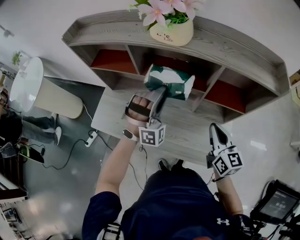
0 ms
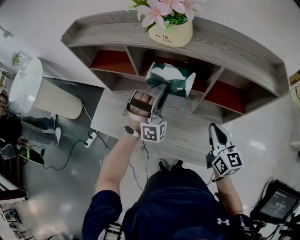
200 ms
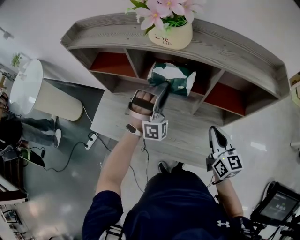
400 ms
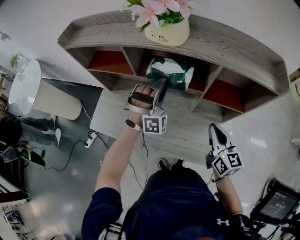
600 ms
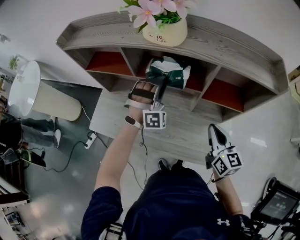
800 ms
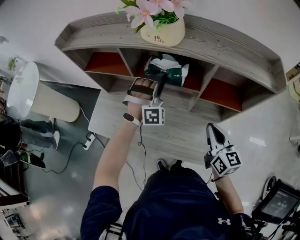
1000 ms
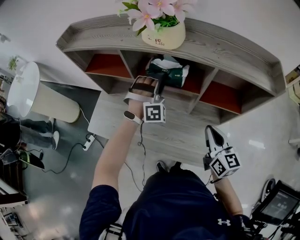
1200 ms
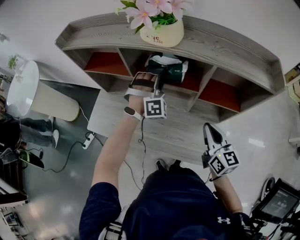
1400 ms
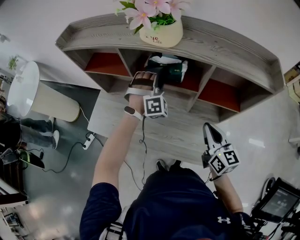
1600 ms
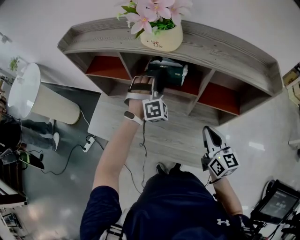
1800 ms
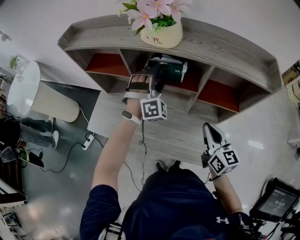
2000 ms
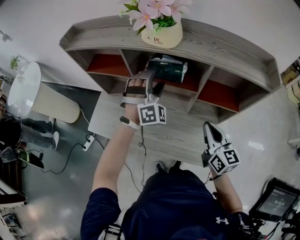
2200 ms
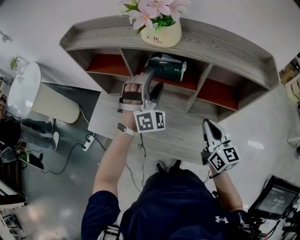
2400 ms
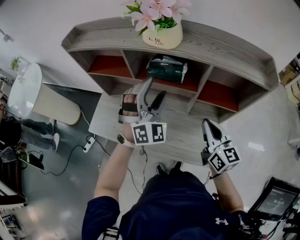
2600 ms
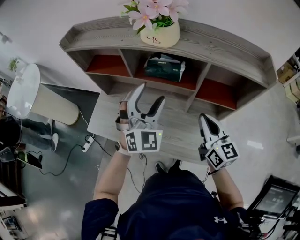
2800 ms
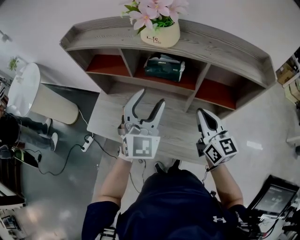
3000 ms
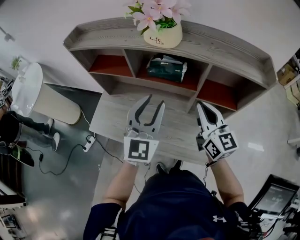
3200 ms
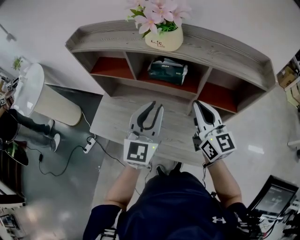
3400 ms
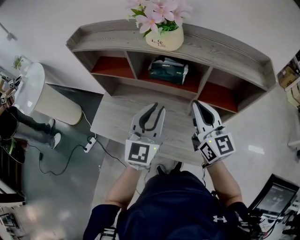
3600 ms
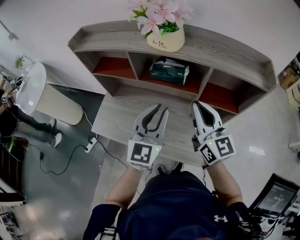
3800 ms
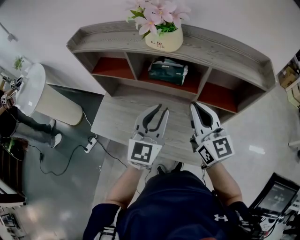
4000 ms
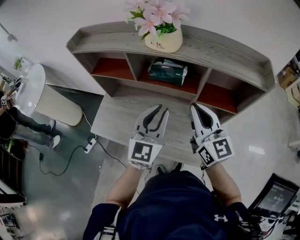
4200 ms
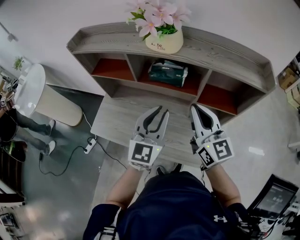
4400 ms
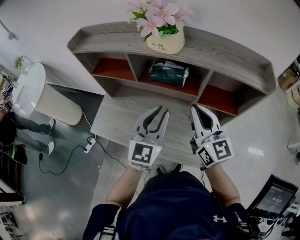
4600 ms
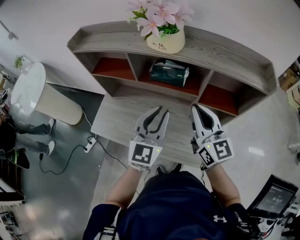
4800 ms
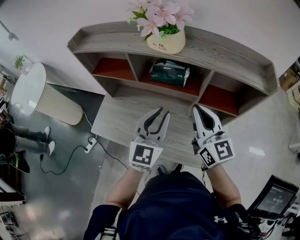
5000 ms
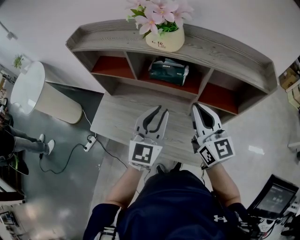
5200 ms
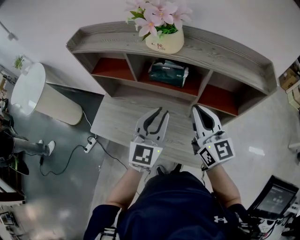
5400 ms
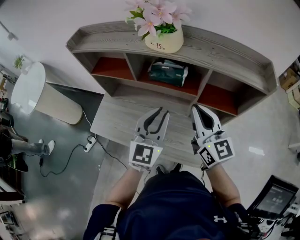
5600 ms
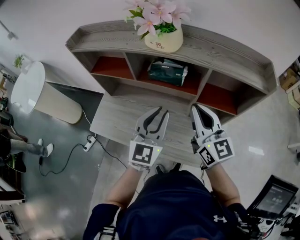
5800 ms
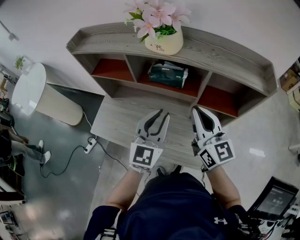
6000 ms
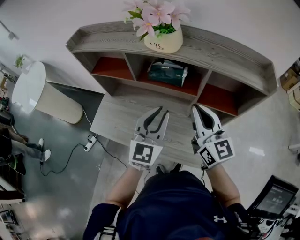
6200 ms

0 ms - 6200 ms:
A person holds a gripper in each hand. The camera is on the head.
0 ms - 1600 ms: The left gripper shifts roughly 10 cm forward.
1600 ms - 3200 ms: The left gripper travels backward and upward by approximately 20 cm, rotates around the line of its fingers by about 60 degrees, counterclockwise from behind, and opens and closes again. The right gripper moves upward, approximately 10 cm.
3200 ms - 6200 ms: There are only small adjustments of the grippers.

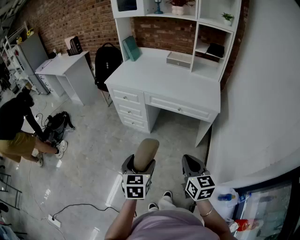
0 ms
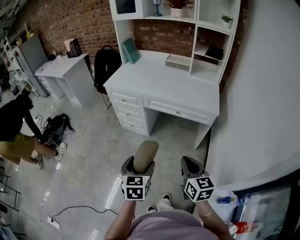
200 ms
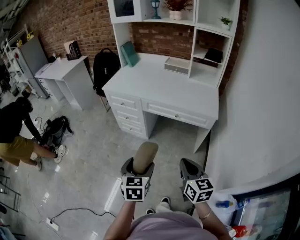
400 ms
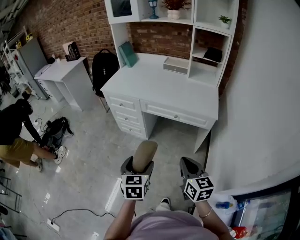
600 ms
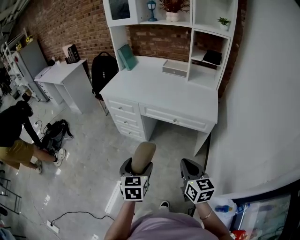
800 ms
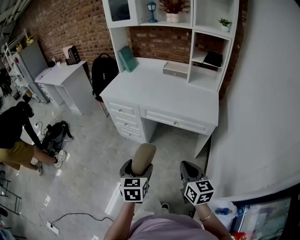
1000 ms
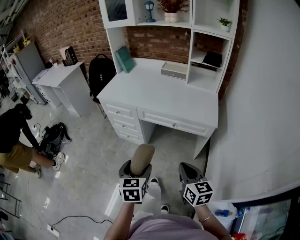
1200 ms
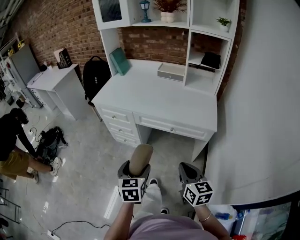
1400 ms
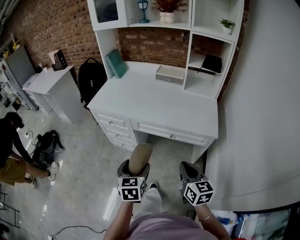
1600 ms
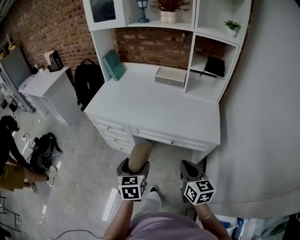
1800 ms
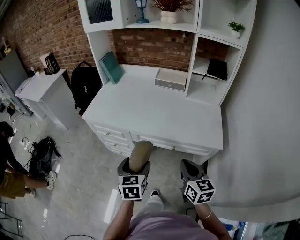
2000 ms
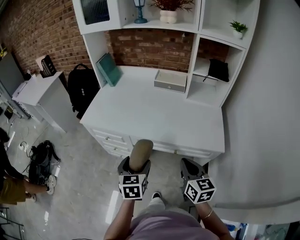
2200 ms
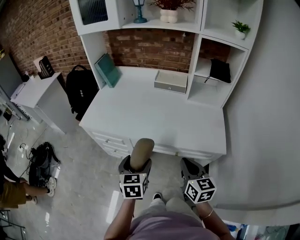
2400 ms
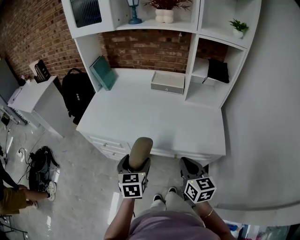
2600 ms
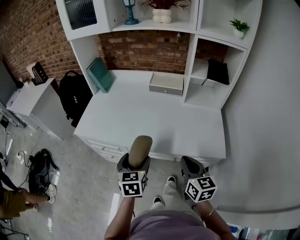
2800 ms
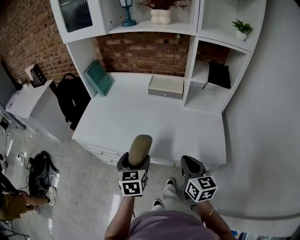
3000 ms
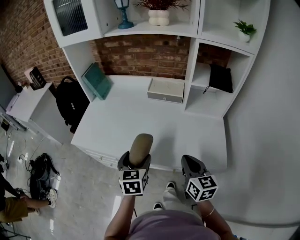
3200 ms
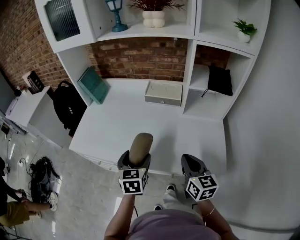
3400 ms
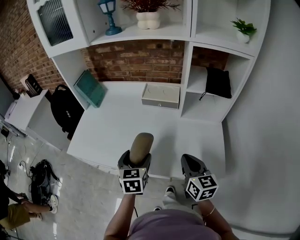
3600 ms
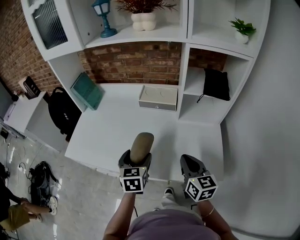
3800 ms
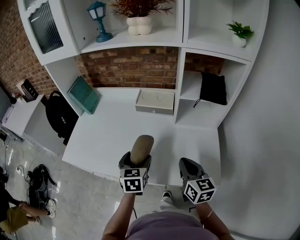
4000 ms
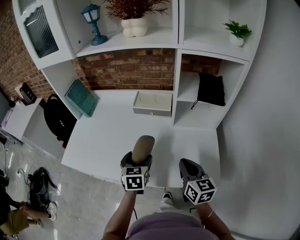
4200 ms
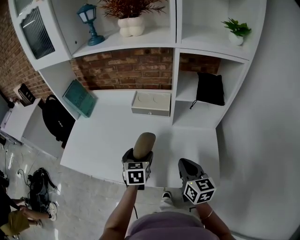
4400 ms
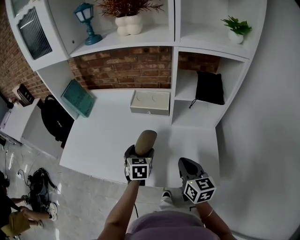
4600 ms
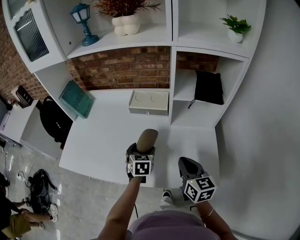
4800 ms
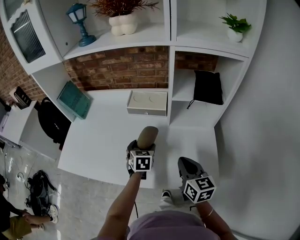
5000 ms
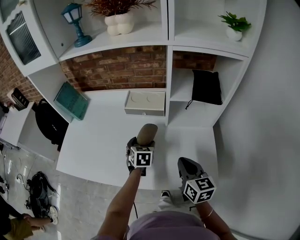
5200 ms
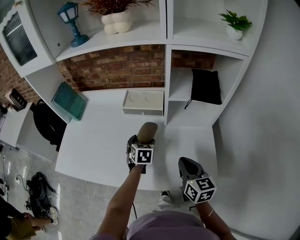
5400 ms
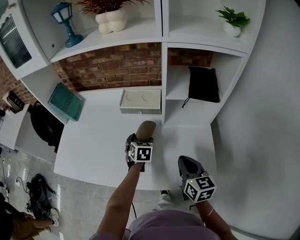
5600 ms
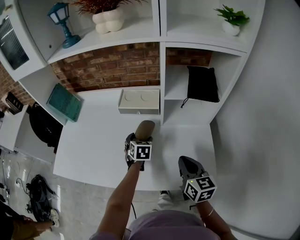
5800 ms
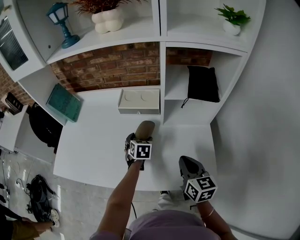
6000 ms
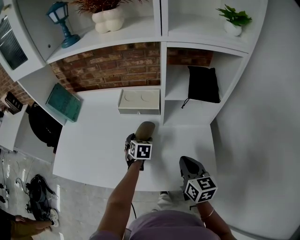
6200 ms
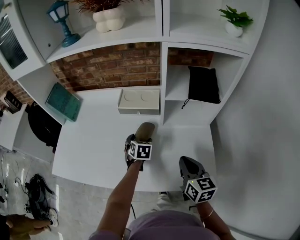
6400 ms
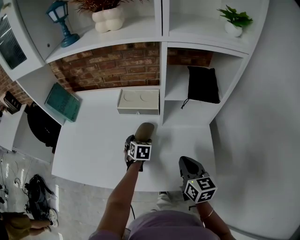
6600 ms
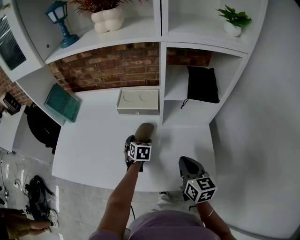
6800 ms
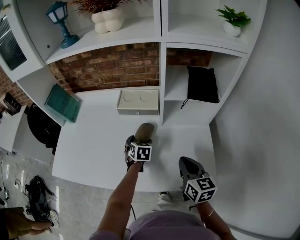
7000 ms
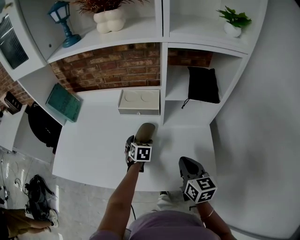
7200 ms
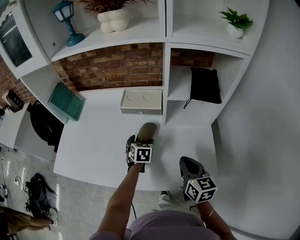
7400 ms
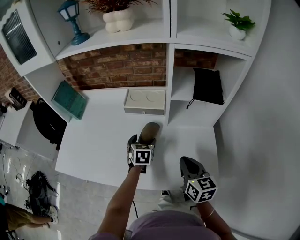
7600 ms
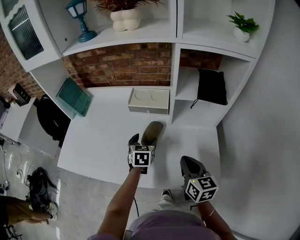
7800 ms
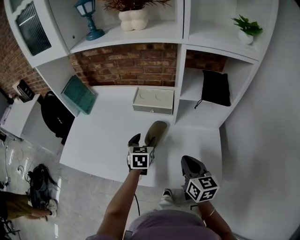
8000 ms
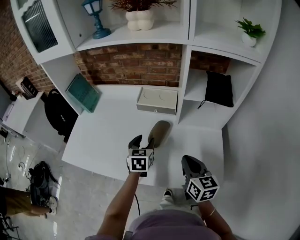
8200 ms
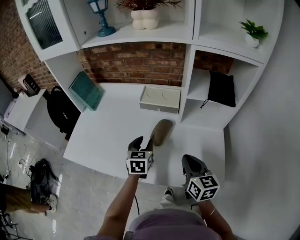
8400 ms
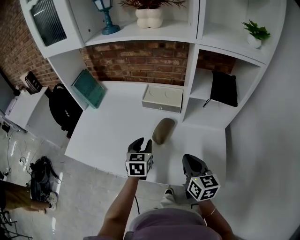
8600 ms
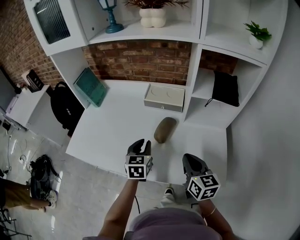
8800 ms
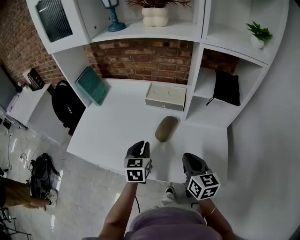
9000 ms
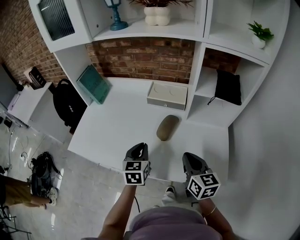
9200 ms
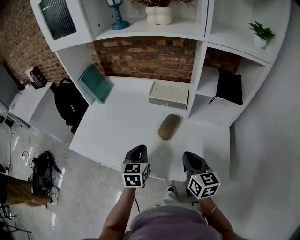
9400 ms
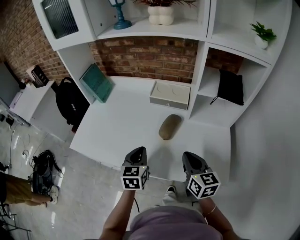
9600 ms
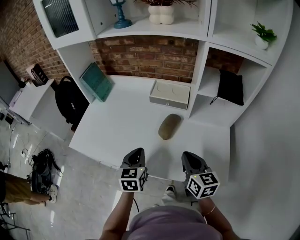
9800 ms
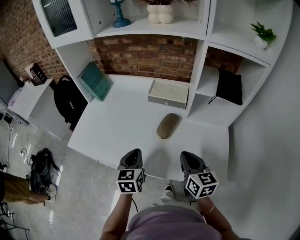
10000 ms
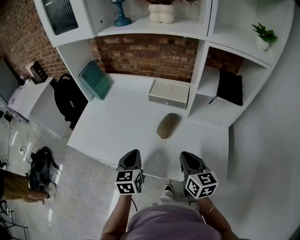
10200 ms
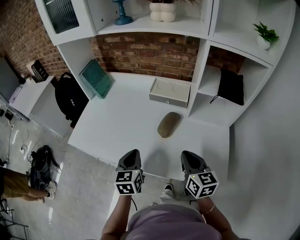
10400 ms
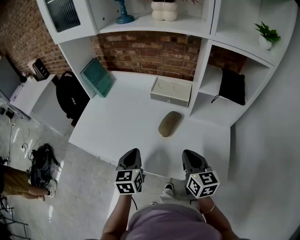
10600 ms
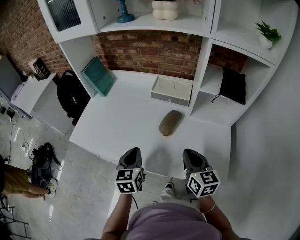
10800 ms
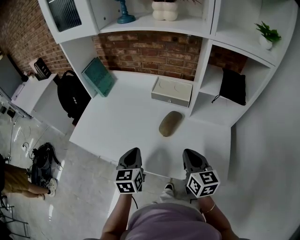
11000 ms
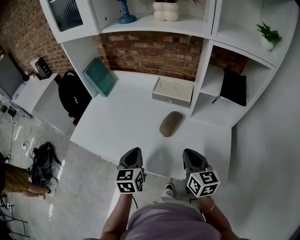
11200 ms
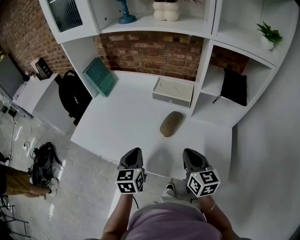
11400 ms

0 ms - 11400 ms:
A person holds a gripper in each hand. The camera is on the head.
0 ms - 1400 ms: The left gripper shifts roughly 15 cm forward, while the right gripper shifts roughly 15 cm forward and to the right.
1400 ms - 2800 ms: Both grippers move forward, about 30 cm.
2800 ms - 4200 ms: Both grippers move forward and to the right, about 20 cm.
4200 ms - 5600 ms: The left gripper moves forward, downward and to the right, about 15 cm.
5600 ms - 7200 ms: The grippers make only small movements.
7200 ms - 8600 ms: The right gripper shifts approximately 5 cm to the left, while the left gripper is displaced upward, backward and to the left by about 15 cm, rotates approximately 20 degrees, and closes.
8600 ms - 10000 ms: The left gripper goes roughly 10 cm backward and to the left.
10000 ms - 11400 ms: The grippers move only a little.

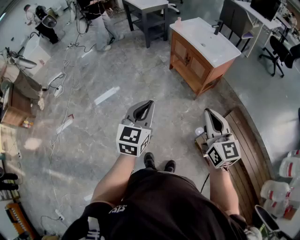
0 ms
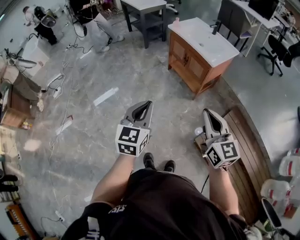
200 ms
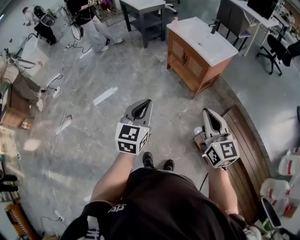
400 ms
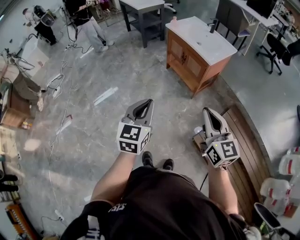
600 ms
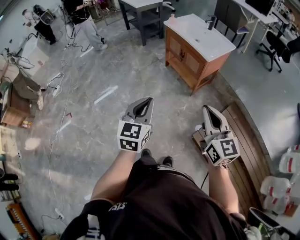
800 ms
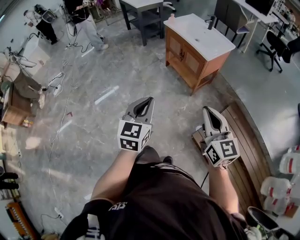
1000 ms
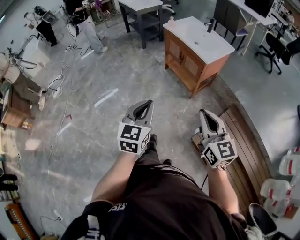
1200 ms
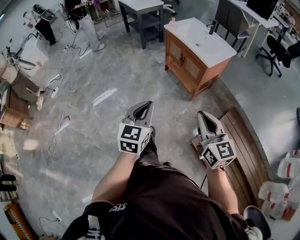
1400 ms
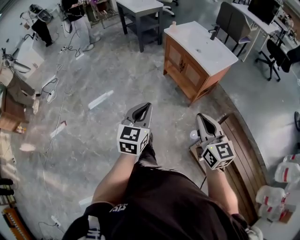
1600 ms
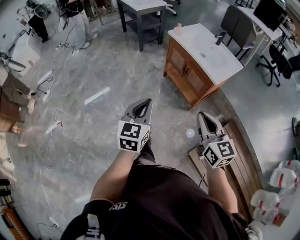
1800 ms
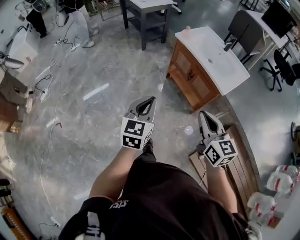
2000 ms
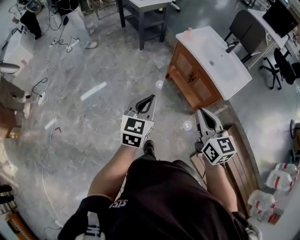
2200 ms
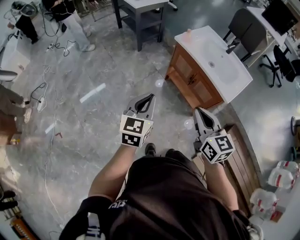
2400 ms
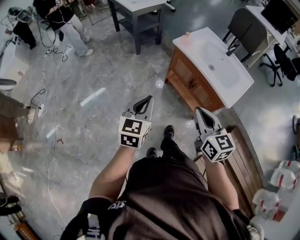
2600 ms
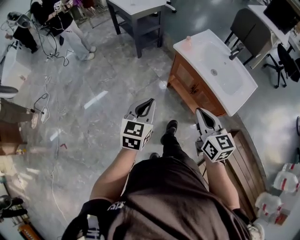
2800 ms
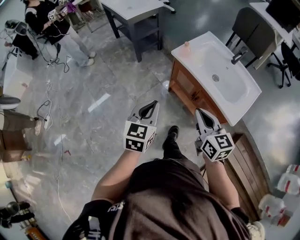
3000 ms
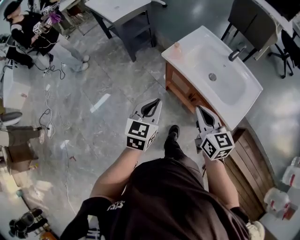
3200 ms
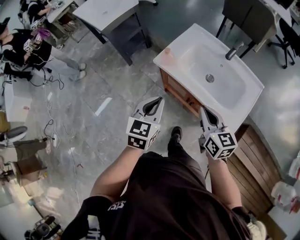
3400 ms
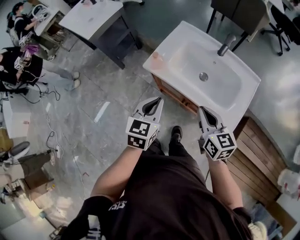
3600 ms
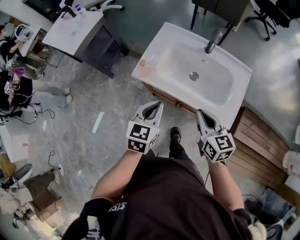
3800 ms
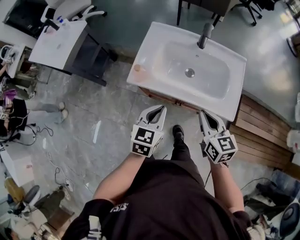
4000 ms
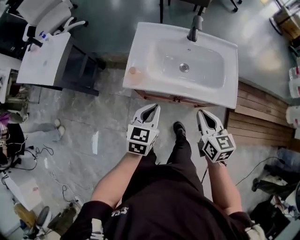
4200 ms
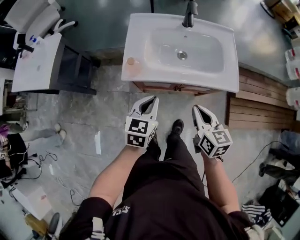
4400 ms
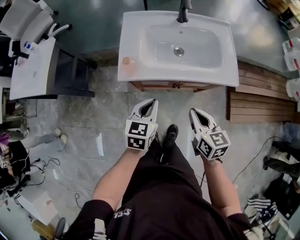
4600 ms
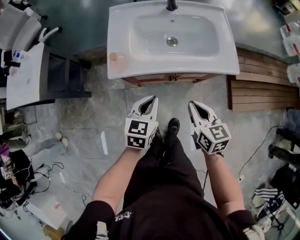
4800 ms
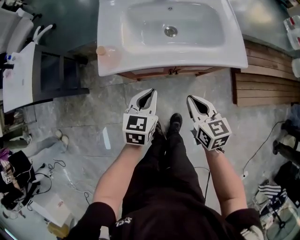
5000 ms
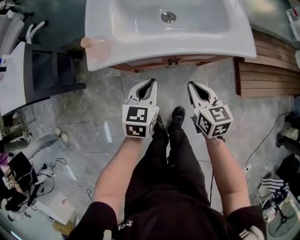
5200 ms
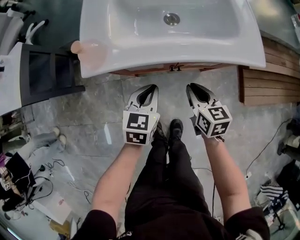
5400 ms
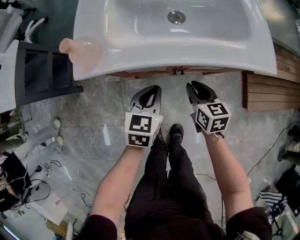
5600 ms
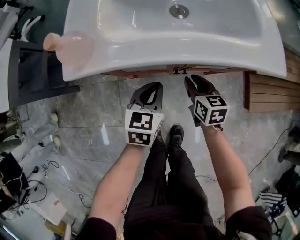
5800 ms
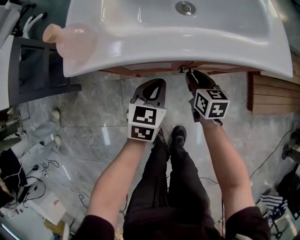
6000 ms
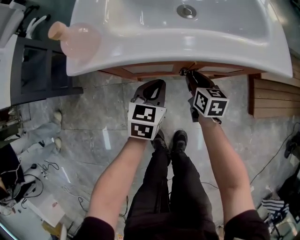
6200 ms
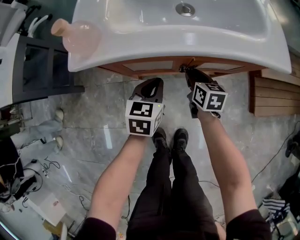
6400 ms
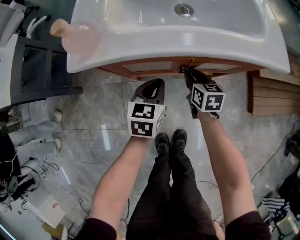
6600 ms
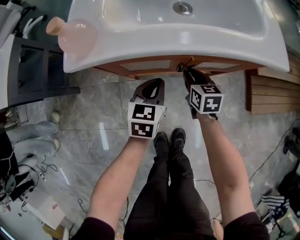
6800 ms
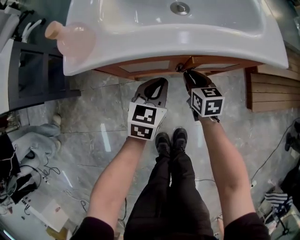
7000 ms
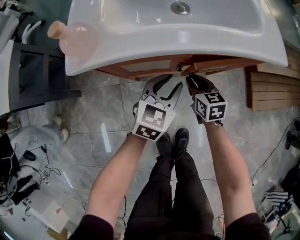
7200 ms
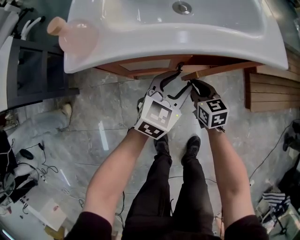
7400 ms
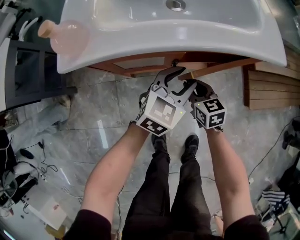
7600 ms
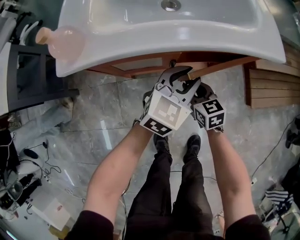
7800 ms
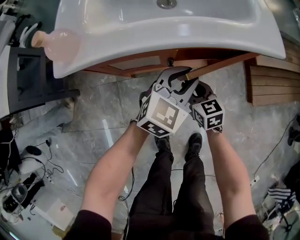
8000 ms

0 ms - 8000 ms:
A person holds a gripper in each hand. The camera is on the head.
0 ms - 1600 ms: The two grippers go about 10 cm forward.
1600 ms - 3200 ms: The pair of grippers is taken forward, some 60 cm.
3200 ms - 4800 ms: Both grippers move downward, roughly 15 cm. The right gripper changes its angle by approximately 50 degrees; the left gripper swivels roughly 50 degrees.
4800 ms - 6400 ms: The right gripper is displaced downward and forward by some 35 cm, and opens. Meanwhile the left gripper goes some 25 cm downward.
6400 ms - 8000 ms: The left gripper heads to the right and upward, covering about 15 cm, swivels some 40 degrees, and opens its fingers. The right gripper is displaced backward by some 5 cm.
